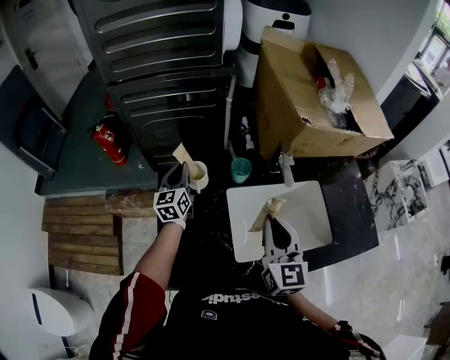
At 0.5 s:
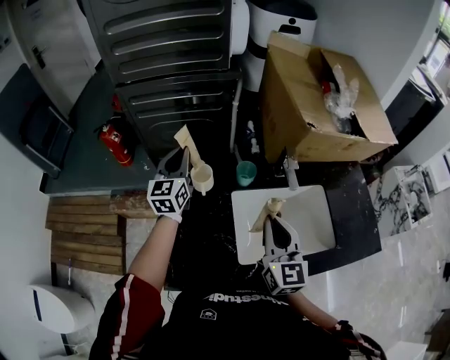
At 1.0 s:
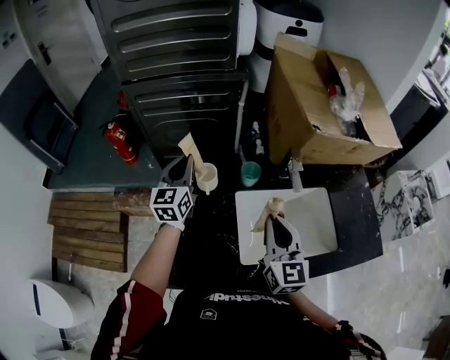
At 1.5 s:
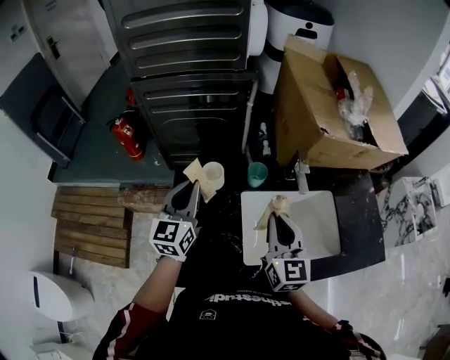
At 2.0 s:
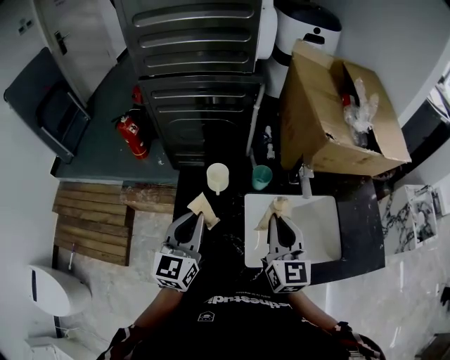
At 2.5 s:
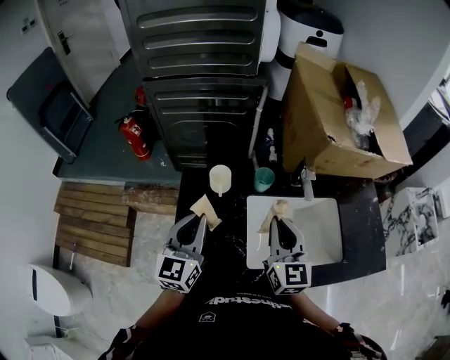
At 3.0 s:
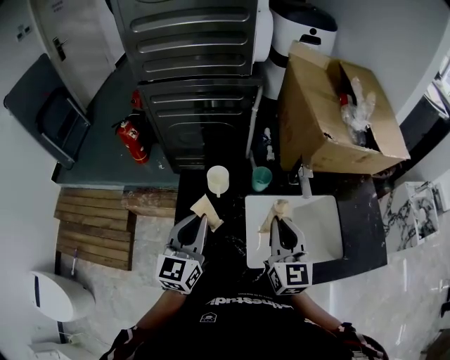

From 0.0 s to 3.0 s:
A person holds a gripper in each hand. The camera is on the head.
From 0.0 s to 1.5 s: The left gripper travels backward and upward by about 15 cm.
From 1.5 s to 3.0 s: The left gripper moves backward, approximately 10 cm.

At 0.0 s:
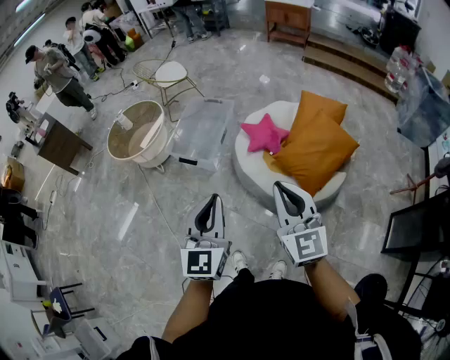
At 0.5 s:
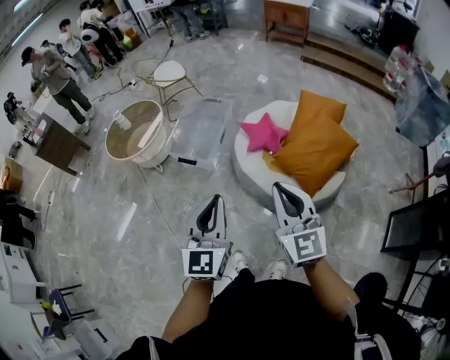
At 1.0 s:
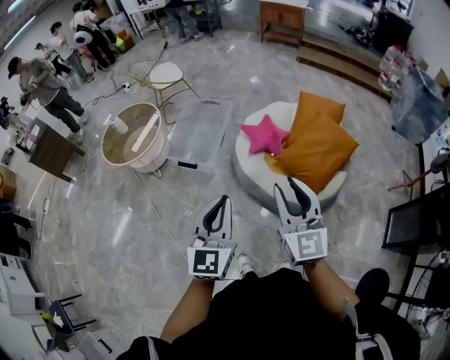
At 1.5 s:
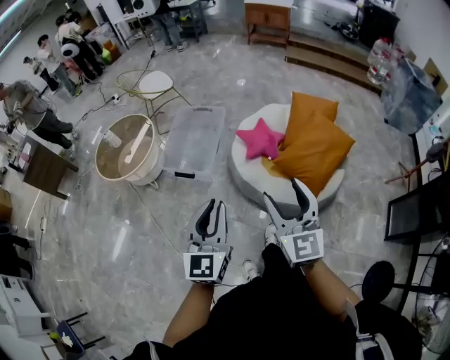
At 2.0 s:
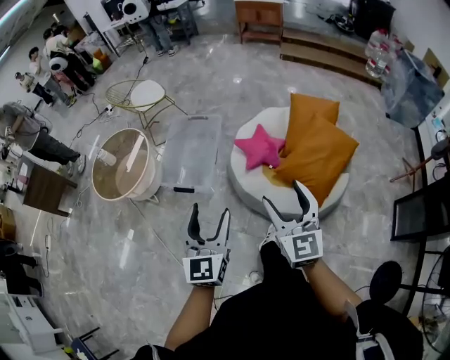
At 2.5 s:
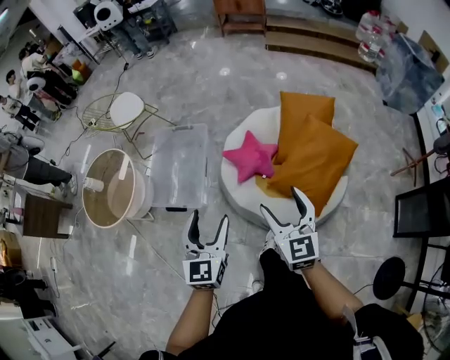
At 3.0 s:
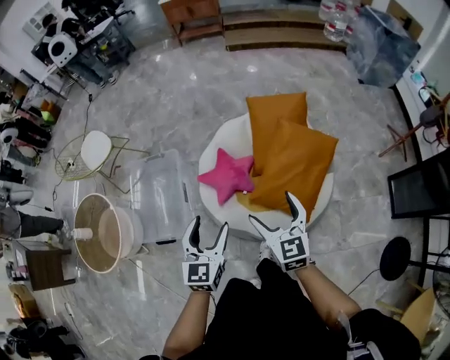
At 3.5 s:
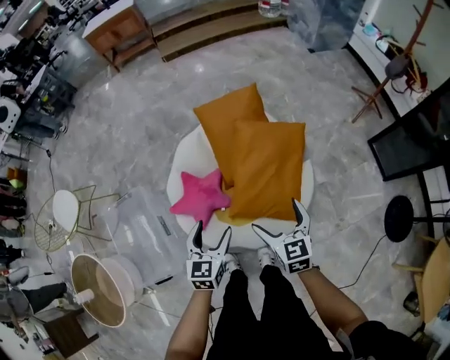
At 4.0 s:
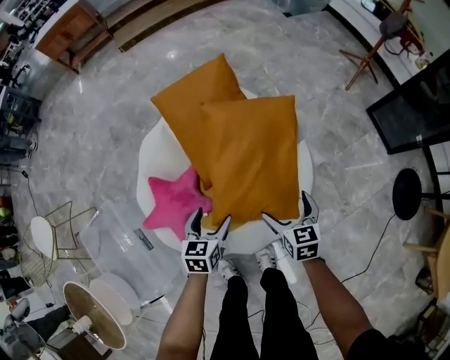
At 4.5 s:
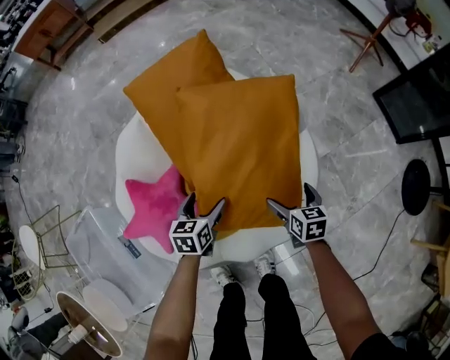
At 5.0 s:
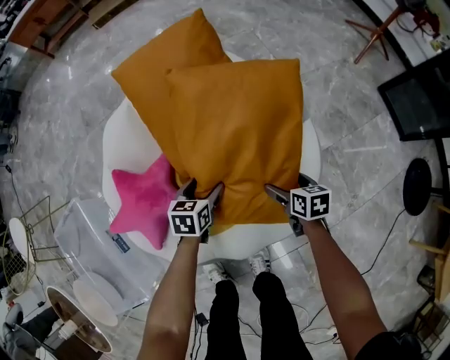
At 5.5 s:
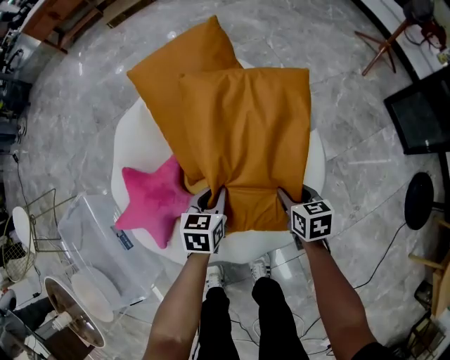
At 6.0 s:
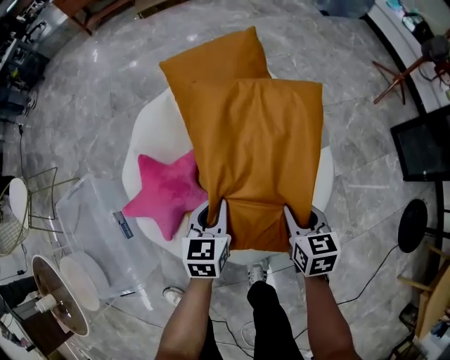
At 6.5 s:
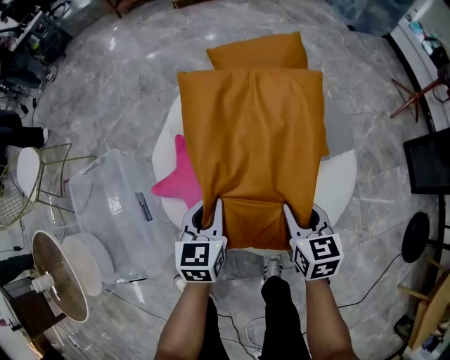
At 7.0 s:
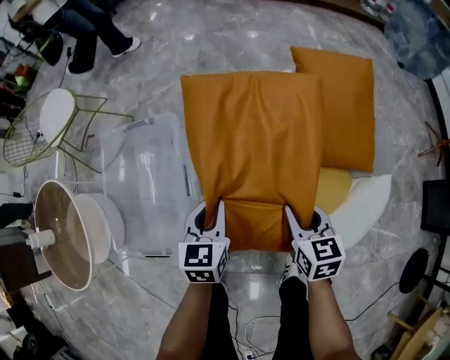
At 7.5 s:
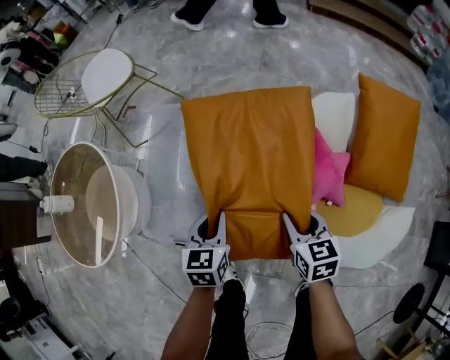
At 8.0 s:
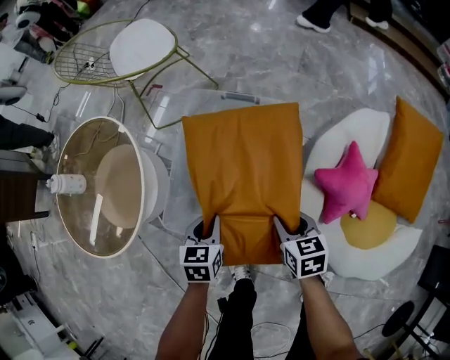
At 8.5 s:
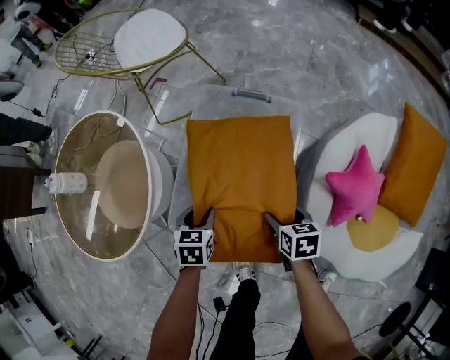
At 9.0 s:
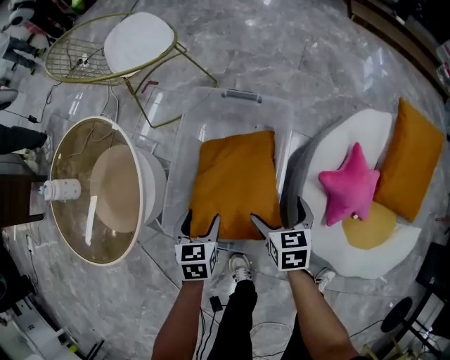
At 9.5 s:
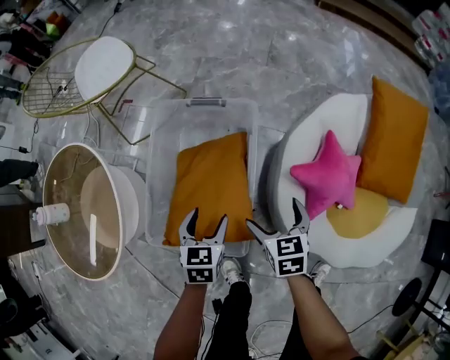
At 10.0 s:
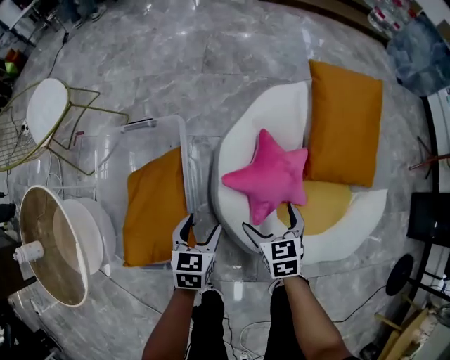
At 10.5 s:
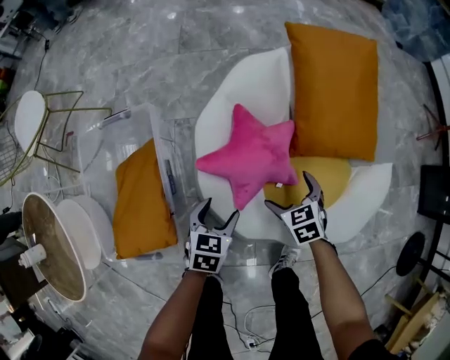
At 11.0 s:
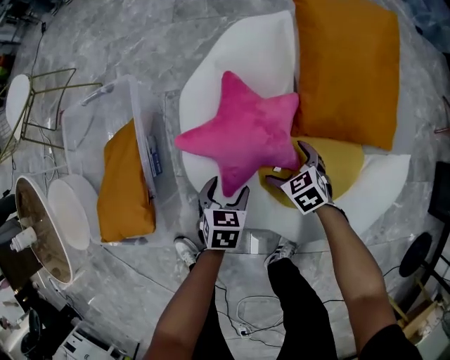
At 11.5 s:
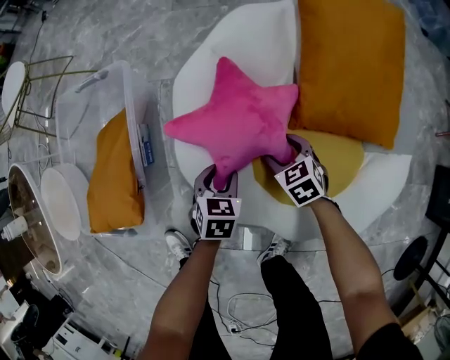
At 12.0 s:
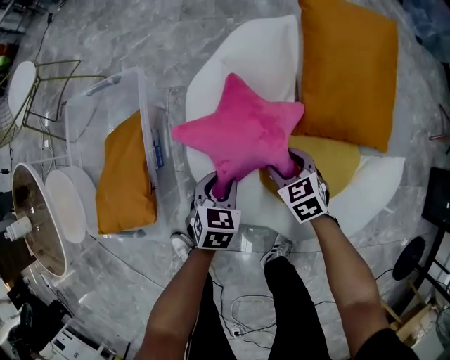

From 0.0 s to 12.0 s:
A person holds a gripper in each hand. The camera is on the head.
From 0.0 s to 2.0 s: The right gripper goes approximately 20 cm forward, and opens up. Meanwhile the left gripper shifts some 20 cm forward and to the left, and opens its fingers.
From 2.0 s to 4.0 s: The two grippers travel together, approximately 60 cm. The right gripper points its fingers some 40 degrees further downward, and opens, while the left gripper angles its fingers downward, by about 40 degrees.
From 4.0 s to 6.0 s: The right gripper reaches about 25 cm downward, then returns, and closes. The left gripper reaches some 25 cm downward, then returns, and closes its fingers.
From 6.0 s to 8.0 s: Both grippers are carried some 80 cm. The right gripper rotates about 50 degrees. The left gripper swivels about 40 degrees.
From 8.0 s to 10.0 s: The left gripper ends up approximately 30 cm from where it was, rotates roughly 30 degrees, and opens. Meanwhile the right gripper shifts by about 30 cm, changes its angle by roughly 20 degrees, and opens up.
From 10.0 s to 12.0 s: The grippers both shift to the right and downward by some 25 cm. The left gripper closes. Meanwhile the right gripper rotates about 20 degrees, and closes up.

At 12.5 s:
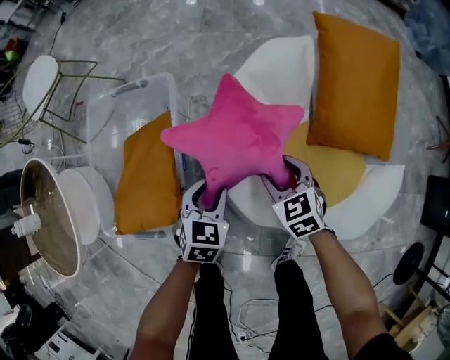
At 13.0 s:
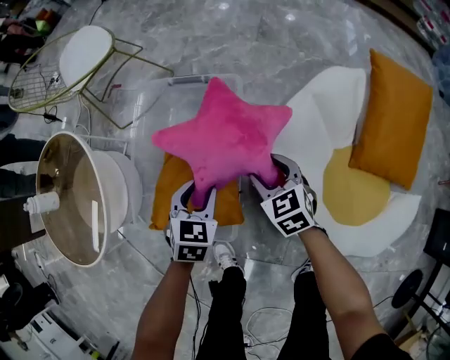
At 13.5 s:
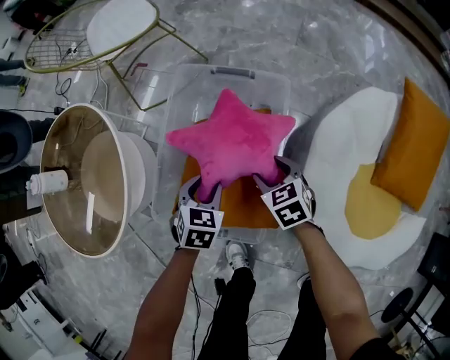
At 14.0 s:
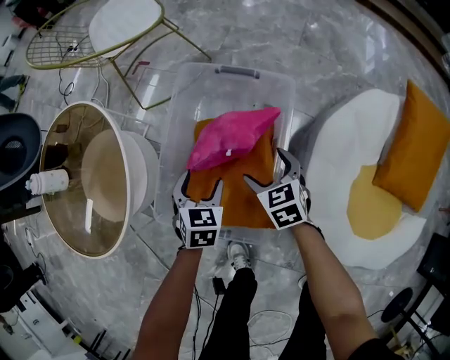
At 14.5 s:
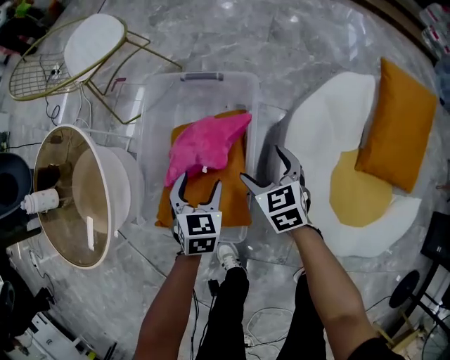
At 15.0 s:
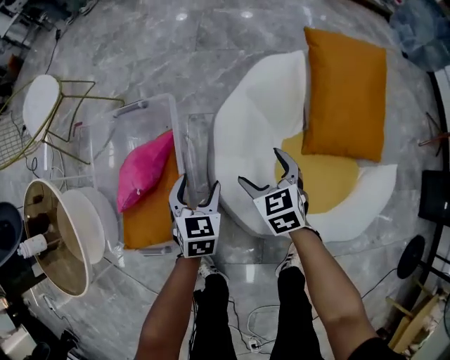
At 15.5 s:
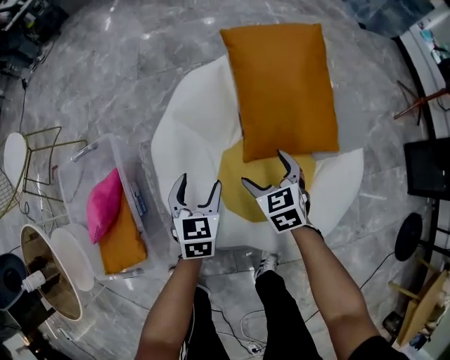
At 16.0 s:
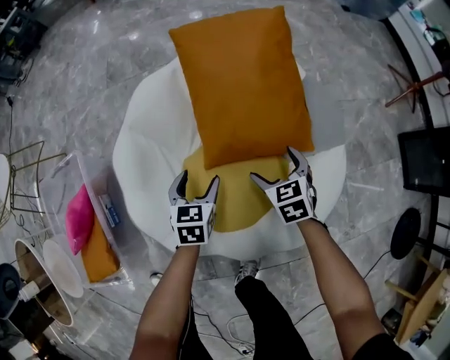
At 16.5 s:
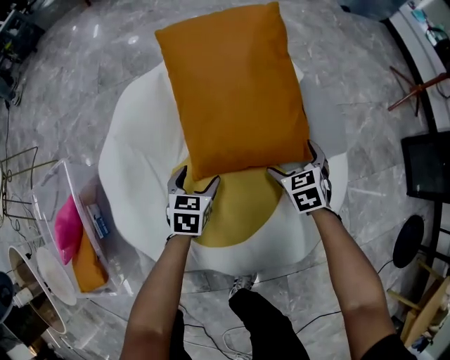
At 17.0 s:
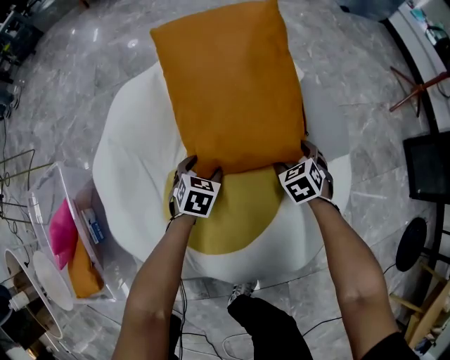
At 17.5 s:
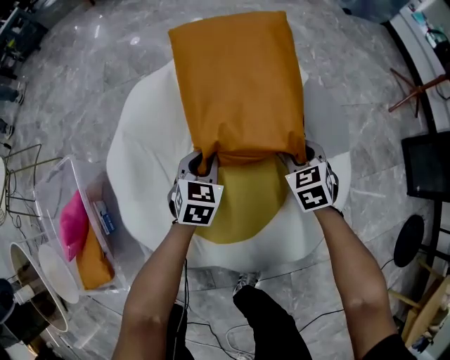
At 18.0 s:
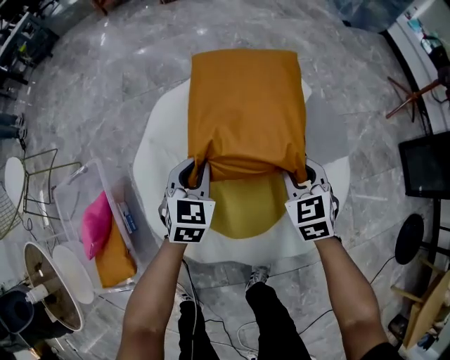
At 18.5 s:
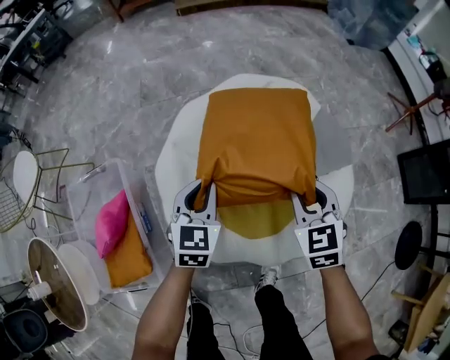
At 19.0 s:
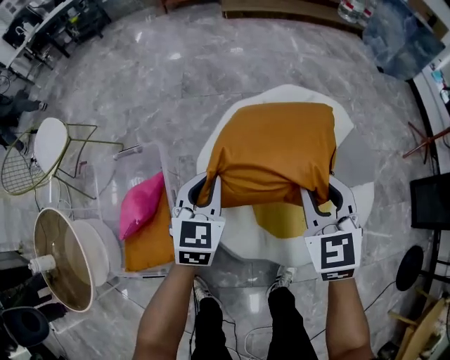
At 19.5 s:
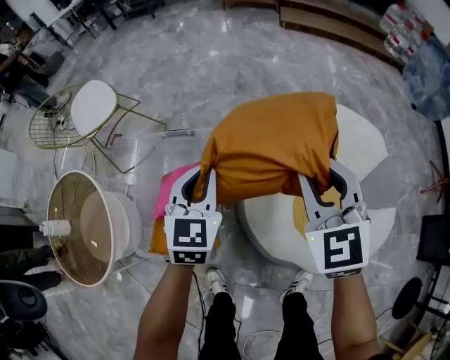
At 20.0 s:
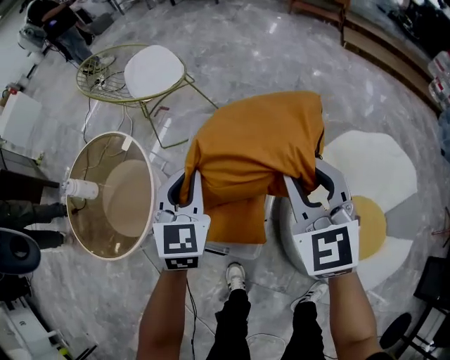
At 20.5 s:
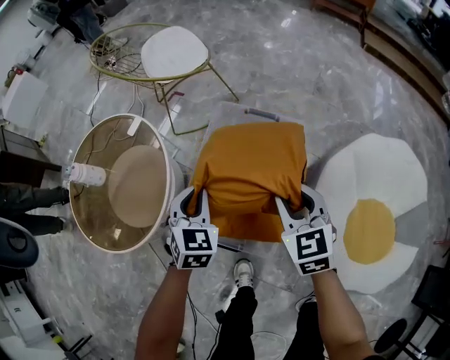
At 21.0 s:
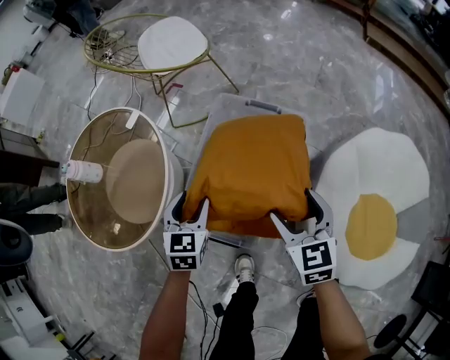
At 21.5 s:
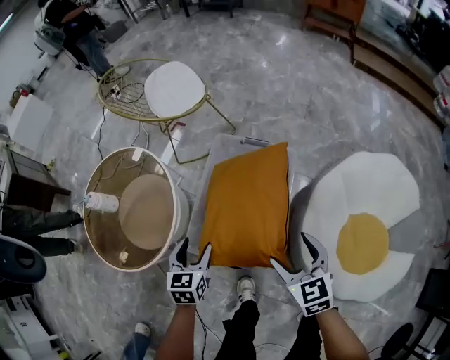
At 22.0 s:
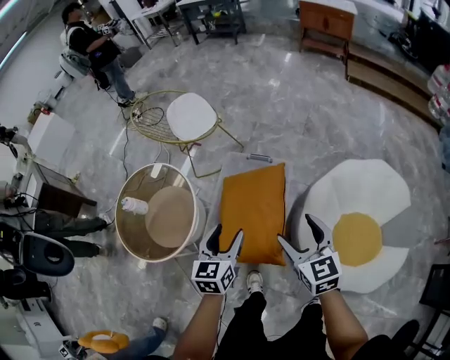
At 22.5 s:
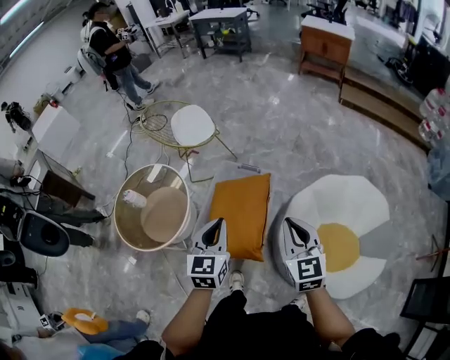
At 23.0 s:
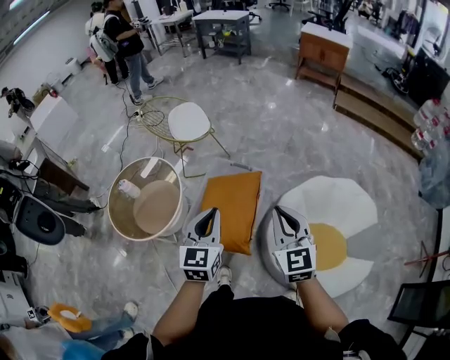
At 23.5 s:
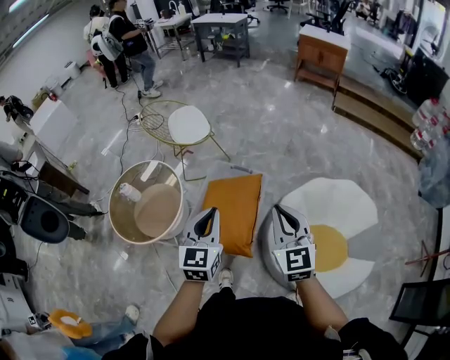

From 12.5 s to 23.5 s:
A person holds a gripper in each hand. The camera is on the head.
From 12.5 s to 14.5 s: Both grippers travel together to the left and forward, about 35 cm. The right gripper opens its fingers, while the left gripper changes its angle by approximately 20 degrees, and opens up.
From 14.5 s to 16.0 s: Both grippers are carried about 70 cm. The right gripper rotates roughly 30 degrees; the left gripper rotates approximately 30 degrees.
From 16.0 s to 18.0 s: The right gripper travels upward by roughly 15 cm, and closes its fingers. The left gripper is displaced upward and forward by approximately 15 cm, swivels some 20 degrees, and closes up.
From 18.0 s to 20.0 s: The pair of grippers is taken about 80 cm. The right gripper rotates about 50 degrees; the left gripper swivels roughly 40 degrees.
From 20.0 s to 21.5 s: The left gripper goes approximately 20 cm to the left, downward and backward, changes its angle by some 30 degrees, and opens. Meanwhile the right gripper goes about 15 cm downward, backward and to the left, rotates roughly 30 degrees, and opens its fingers.
From 21.5 s to 23.5 s: Both grippers travel together upward, approximately 40 cm. The right gripper rotates approximately 30 degrees, and closes up. The left gripper changes its angle by roughly 30 degrees, and closes its fingers.
